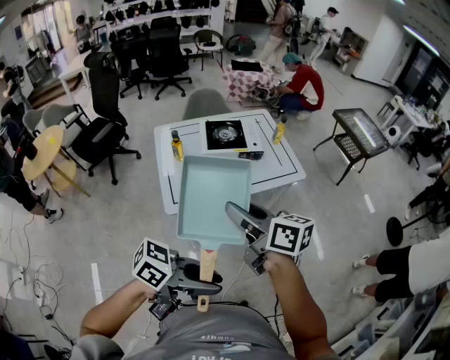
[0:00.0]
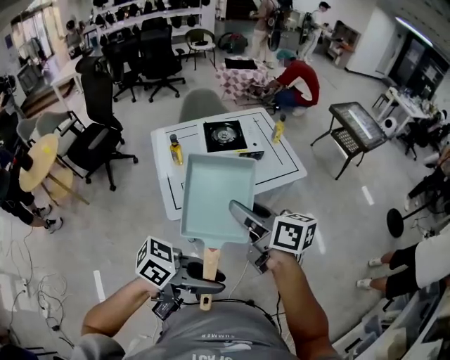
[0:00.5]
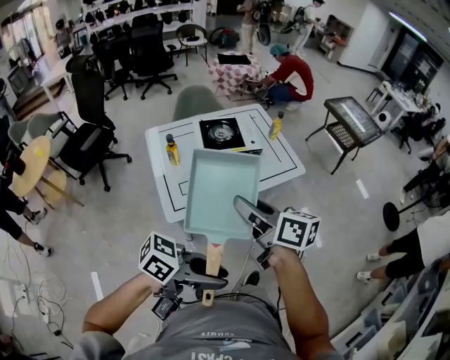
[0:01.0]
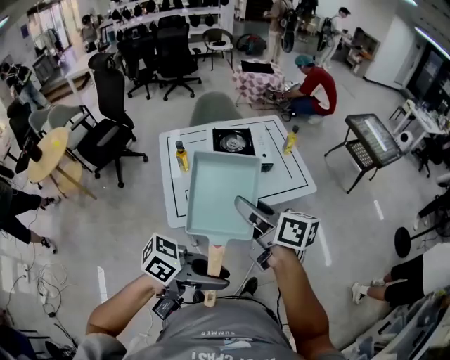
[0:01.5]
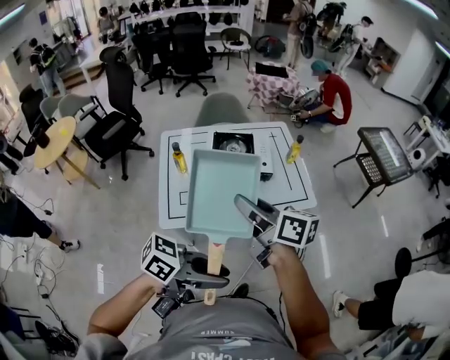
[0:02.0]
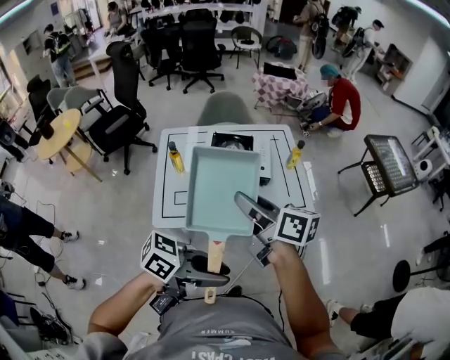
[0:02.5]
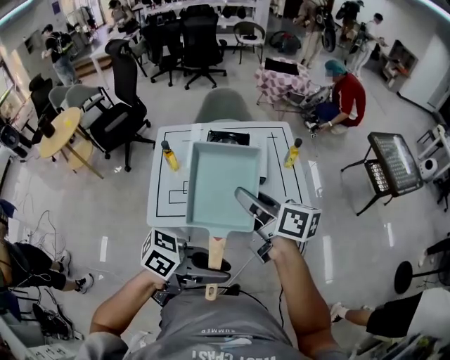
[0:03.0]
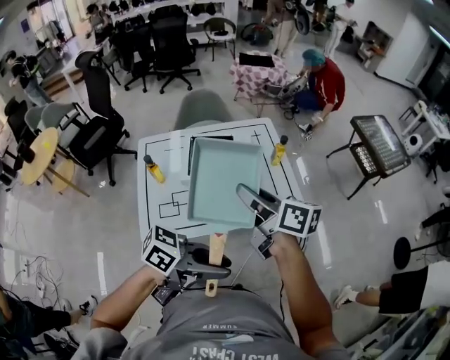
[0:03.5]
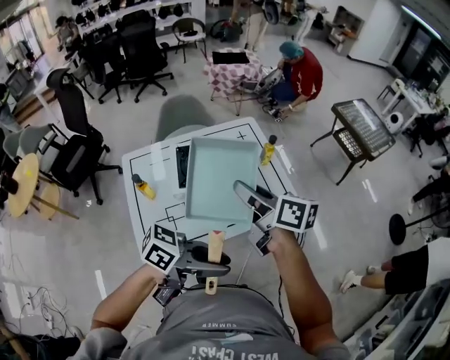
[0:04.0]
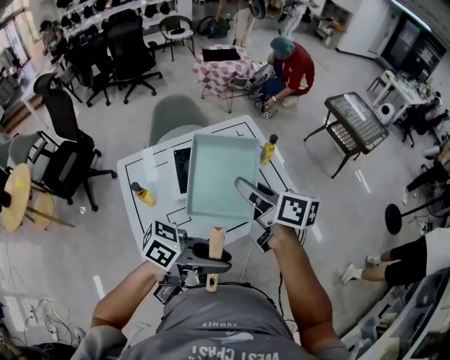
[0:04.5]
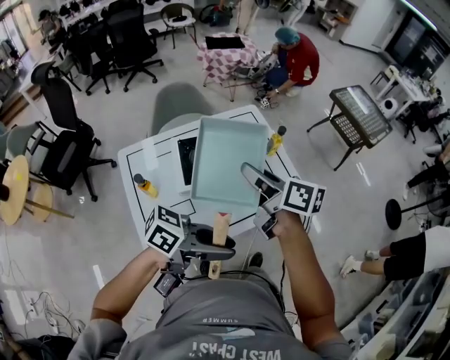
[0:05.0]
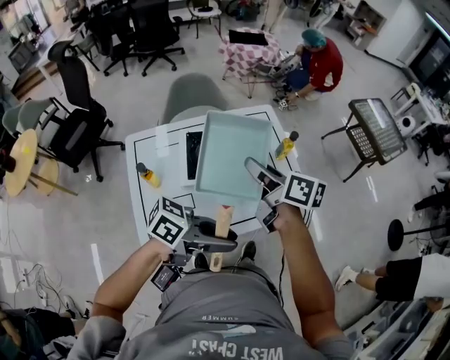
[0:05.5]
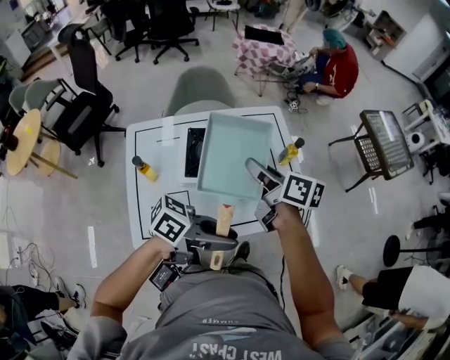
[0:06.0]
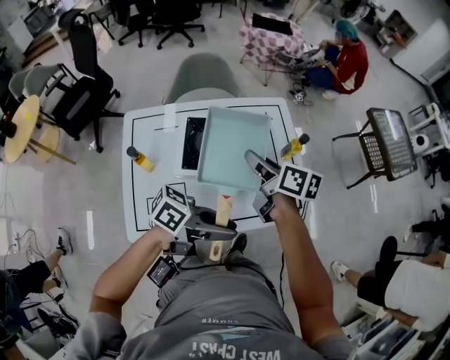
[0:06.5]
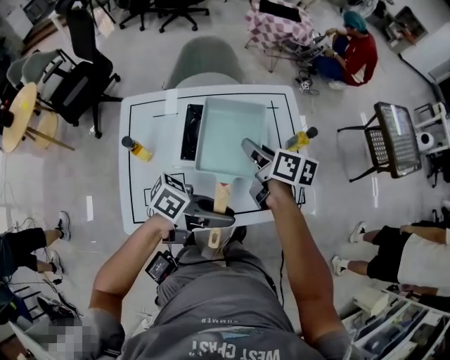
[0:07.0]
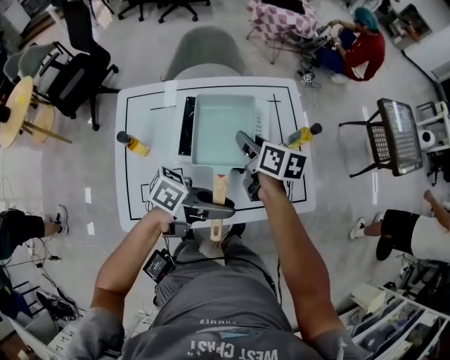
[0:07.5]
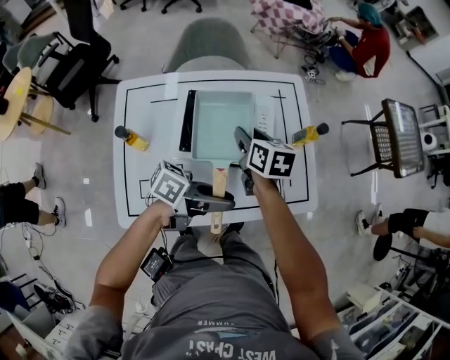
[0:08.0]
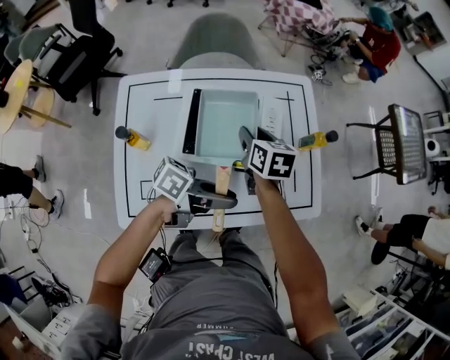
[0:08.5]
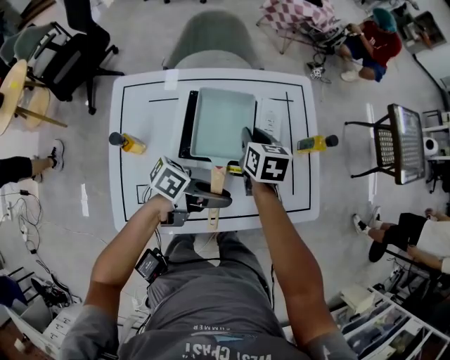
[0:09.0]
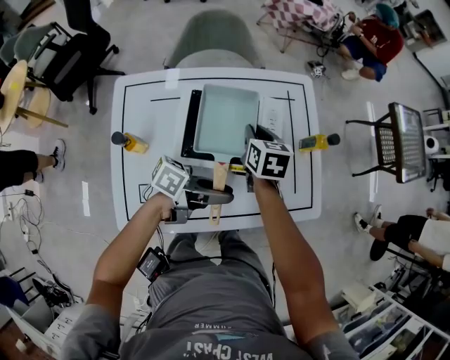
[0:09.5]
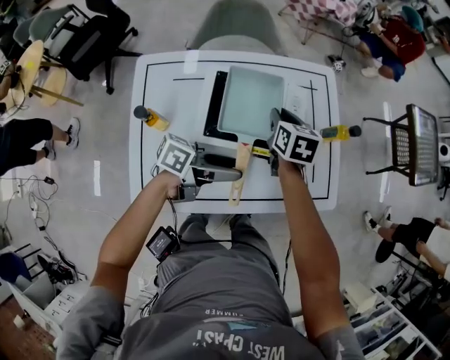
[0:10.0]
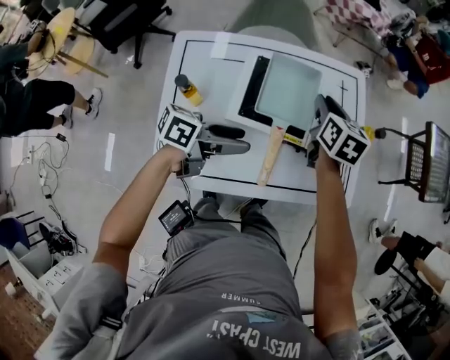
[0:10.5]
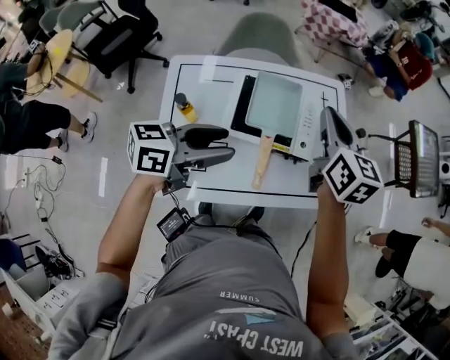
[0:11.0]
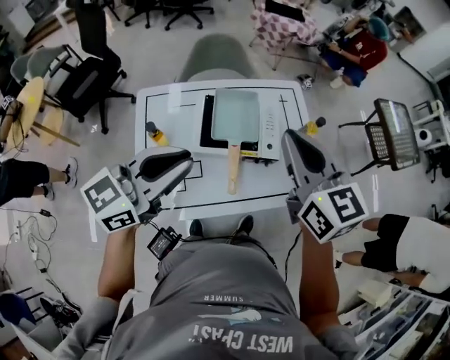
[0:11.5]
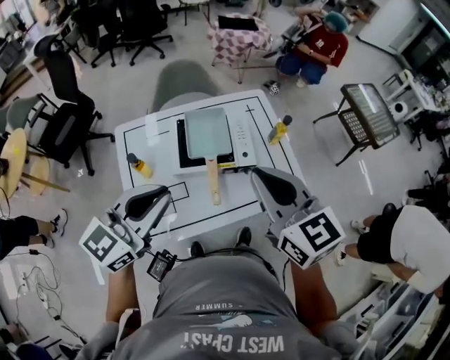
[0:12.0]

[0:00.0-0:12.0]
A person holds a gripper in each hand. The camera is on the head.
0:00.0 to 0:02.0: The right gripper changes place by some 20 cm. The left gripper ends up about 20 cm from where it was.
0:02.0 to 0:04.0: The left gripper moves approximately 20 cm; the right gripper shifts by some 20 cm.
0:04.0 to 0:06.0: The left gripper changes place by some 15 cm; the right gripper changes place by some 15 cm.
0:06.0 to 0:08.0: Both grippers travel together downward, about 15 cm. The right gripper changes its angle by roughly 30 degrees.
0:08.0 to 0:10.0: The right gripper ends up about 5 cm from where it was; the left gripper moves to the left, about 10 cm, and opens.
0:10.0 to 0:12.0: The grippers both shift upward and backward by approximately 35 cm. The left gripper twists about 60 degrees clockwise, seen from behind, and closes its fingers. The right gripper changes its angle by about 30 degrees.

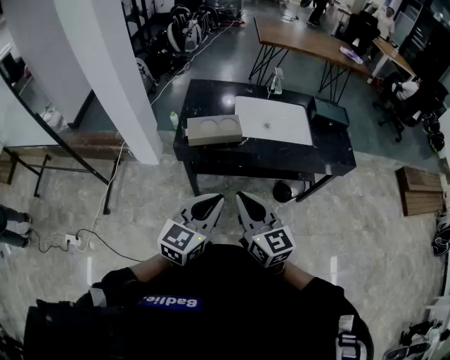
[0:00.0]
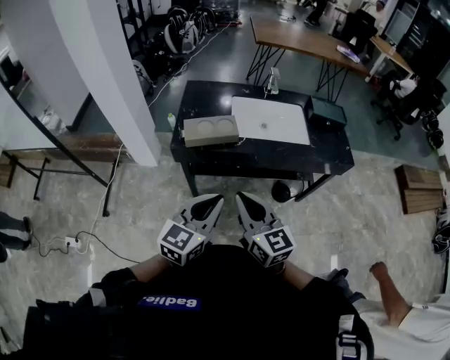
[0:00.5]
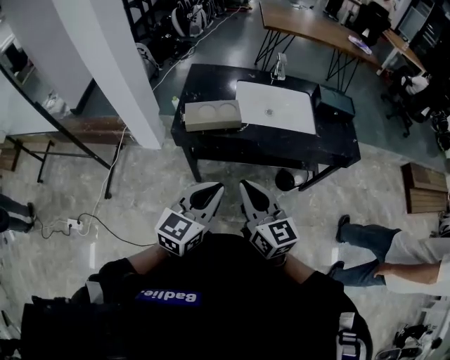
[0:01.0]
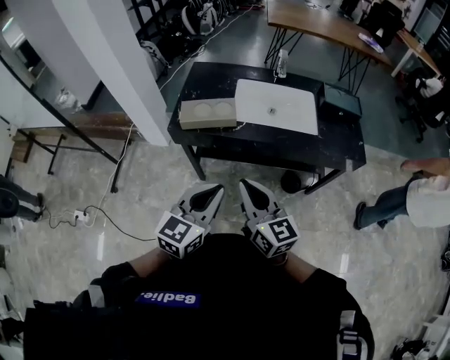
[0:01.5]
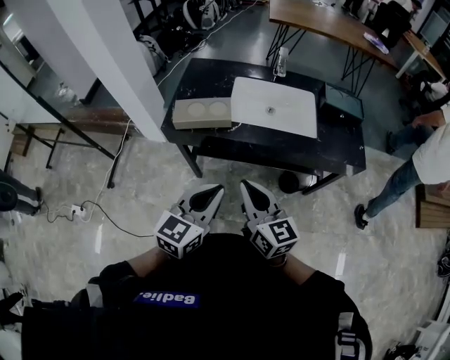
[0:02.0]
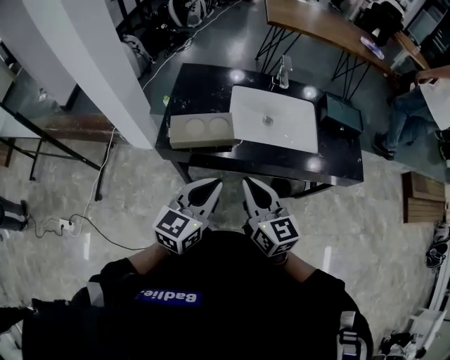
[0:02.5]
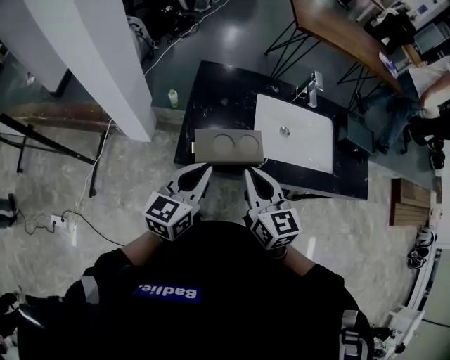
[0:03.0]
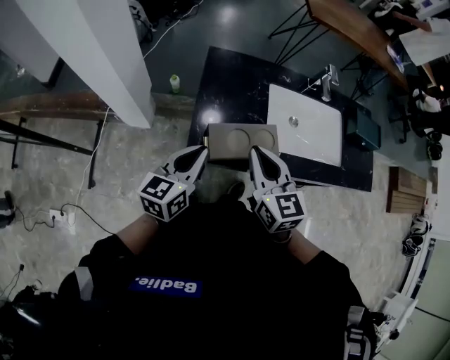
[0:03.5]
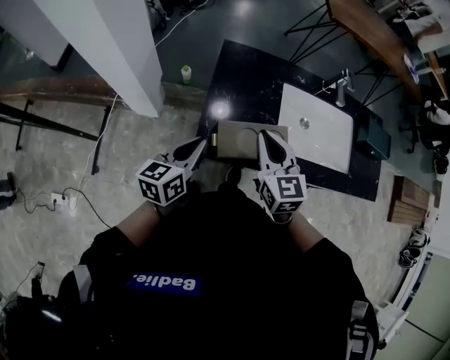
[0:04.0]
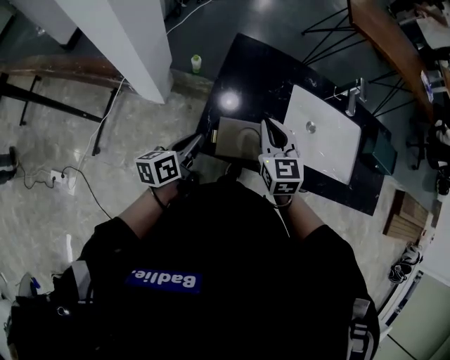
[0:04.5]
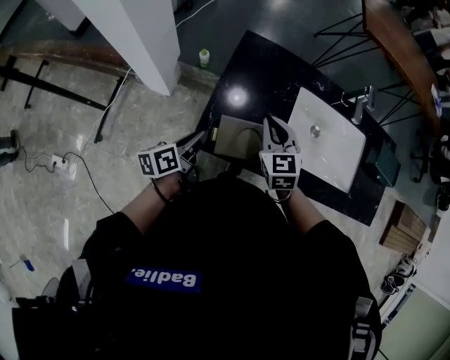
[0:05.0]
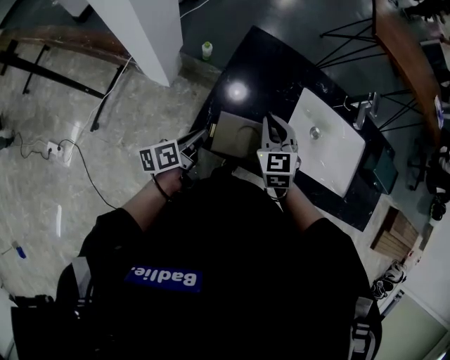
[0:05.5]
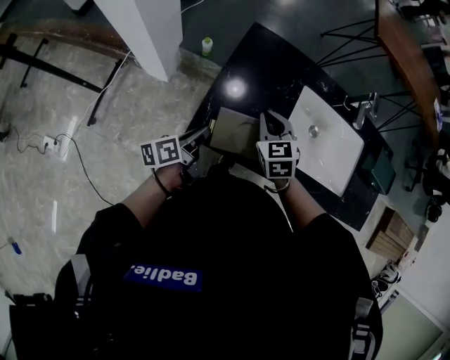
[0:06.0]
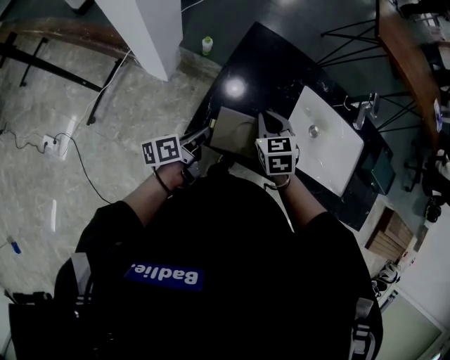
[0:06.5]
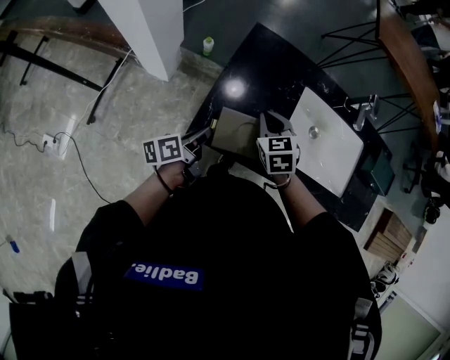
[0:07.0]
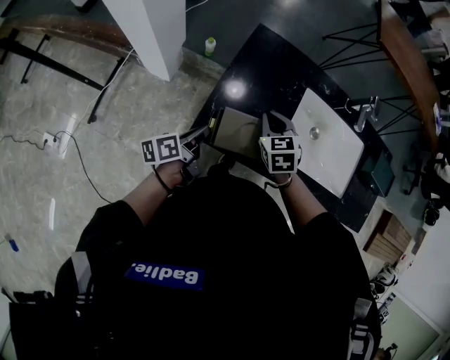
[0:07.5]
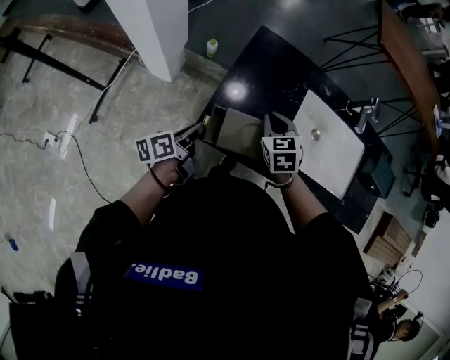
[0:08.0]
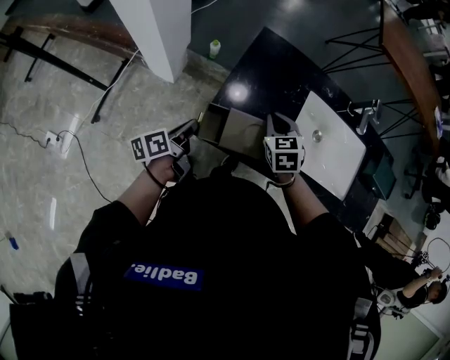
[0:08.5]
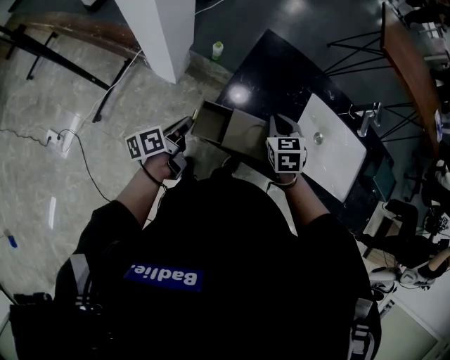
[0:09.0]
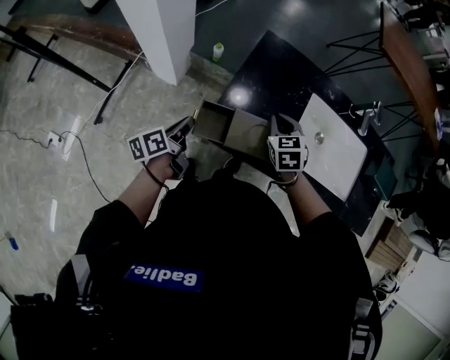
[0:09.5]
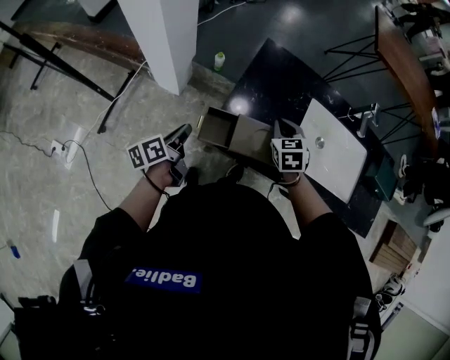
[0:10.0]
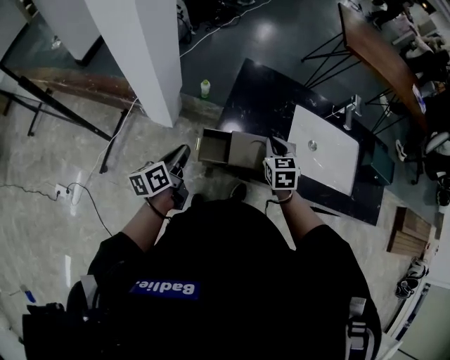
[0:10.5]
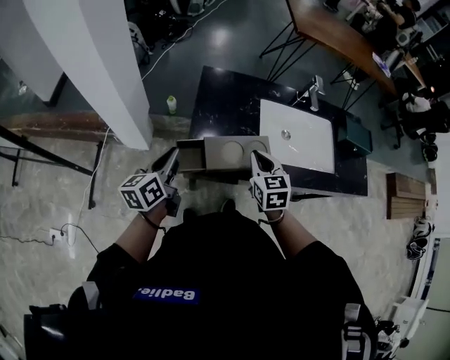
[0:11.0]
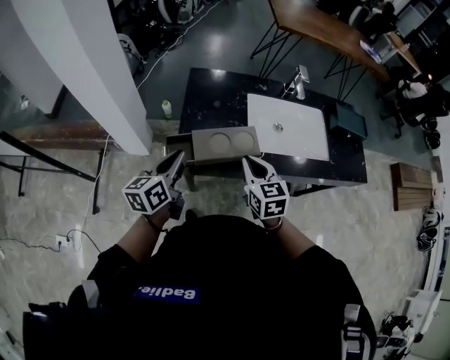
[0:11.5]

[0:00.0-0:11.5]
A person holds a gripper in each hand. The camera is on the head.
0:00.0 to 0:02.0: The right gripper goes approximately 15 cm to the right and forward. Meanwhile the left gripper is displaced to the right by approximately 10 cm.
0:02.0 to 0:04.0: The pair of grippers is taken forward and to the left, about 40 cm. The left gripper rotates some 30 degrees; the right gripper turns by about 30 degrees.
0:04.0 to 0:06.0: The right gripper goes approximately 15 cm downward and forward, and changes its angle by about 30 degrees. Meanwhile the left gripper heads downward, covering roughly 10 cm, and changes its angle by about 40 degrees.
0:06.0 to 0:07.5: The grippers move only a little.
0:07.5 to 0:09.5: The left gripper is displaced to the left by some 10 cm.
0:09.5 to 0:11.5: The left gripper travels upward and to the right by roughly 20 cm, and swivels some 40 degrees; the right gripper is displaced backward and upward by some 20 cm, and rotates roughly 30 degrees.

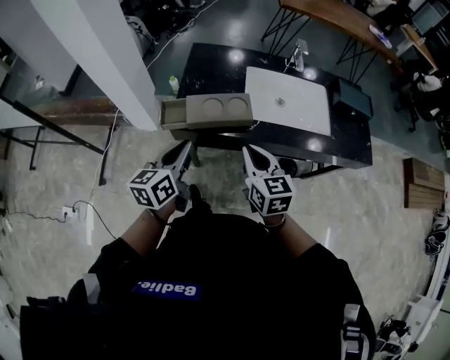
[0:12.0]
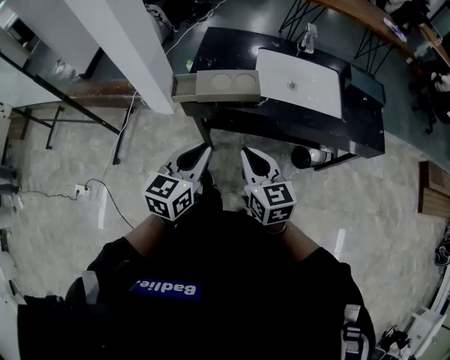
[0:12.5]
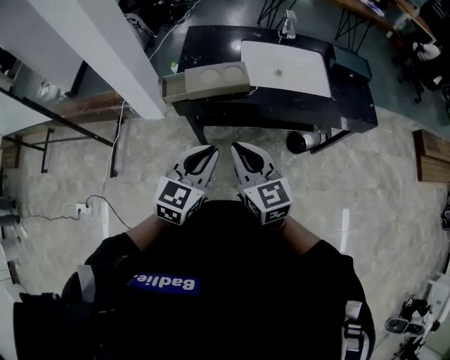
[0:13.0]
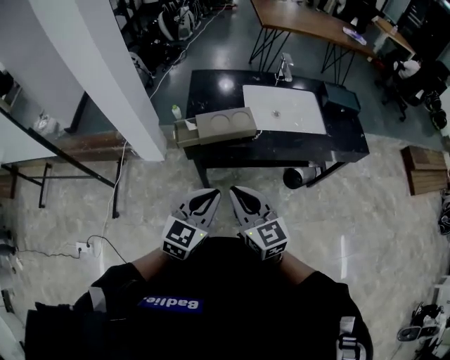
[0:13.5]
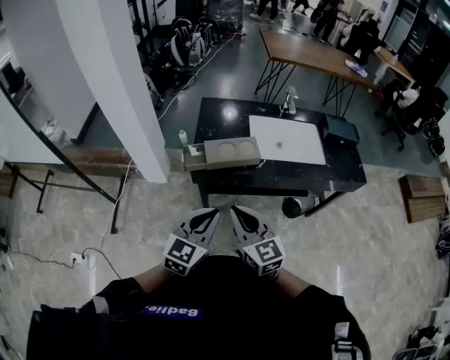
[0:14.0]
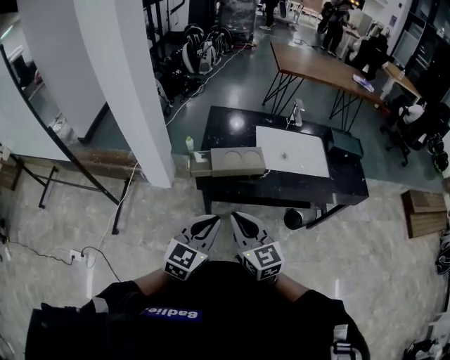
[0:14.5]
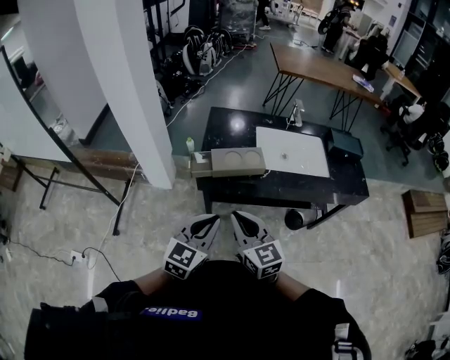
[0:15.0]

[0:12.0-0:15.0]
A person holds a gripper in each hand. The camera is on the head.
0:12.0 to 0:13.5: The right gripper shifts some 20 cm backward and to the left. The left gripper travels backward by roughly 15 cm, and turns by some 40 degrees.
0:13.5 to 0:15.0: The grippers stay close to where they were, moving slightly.
